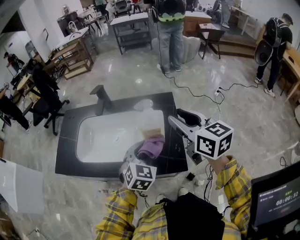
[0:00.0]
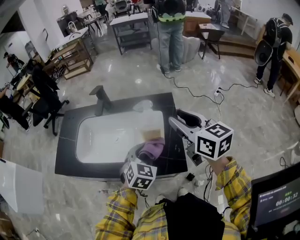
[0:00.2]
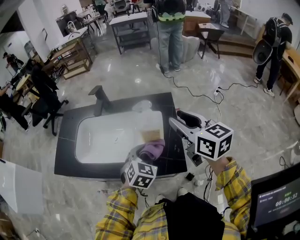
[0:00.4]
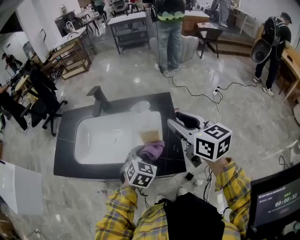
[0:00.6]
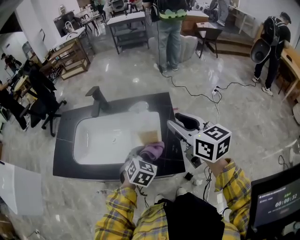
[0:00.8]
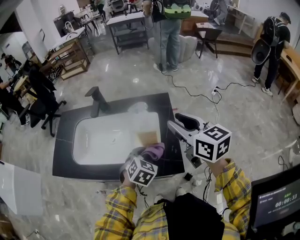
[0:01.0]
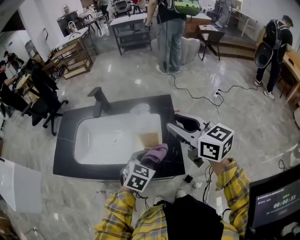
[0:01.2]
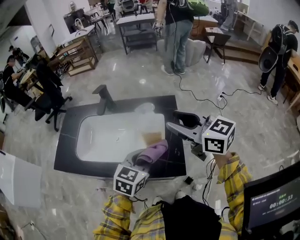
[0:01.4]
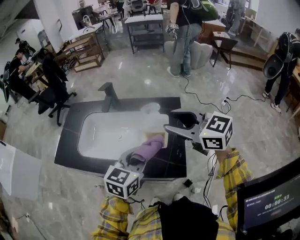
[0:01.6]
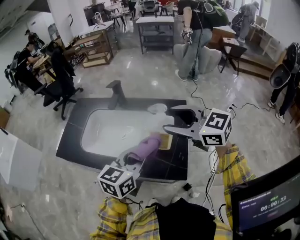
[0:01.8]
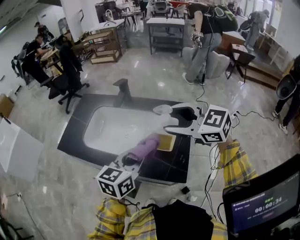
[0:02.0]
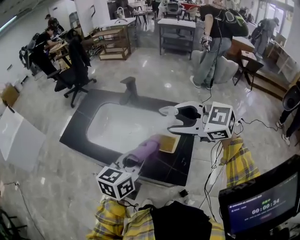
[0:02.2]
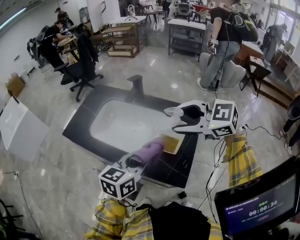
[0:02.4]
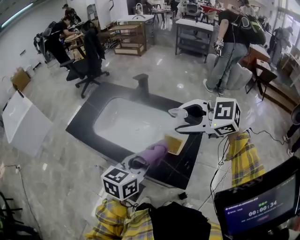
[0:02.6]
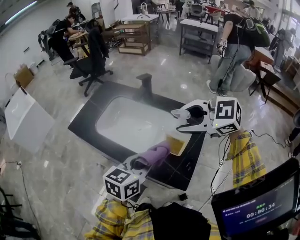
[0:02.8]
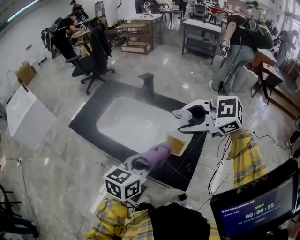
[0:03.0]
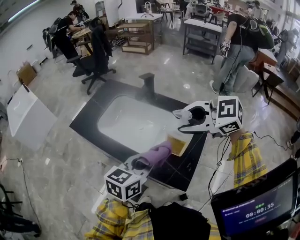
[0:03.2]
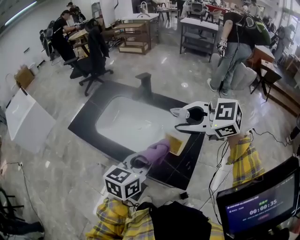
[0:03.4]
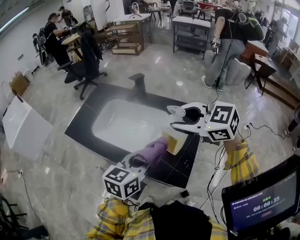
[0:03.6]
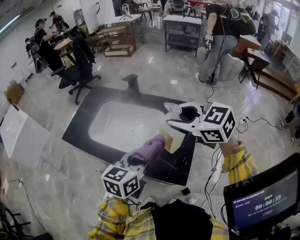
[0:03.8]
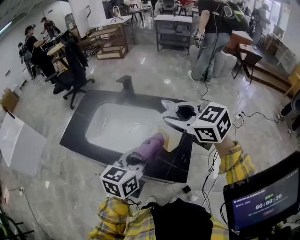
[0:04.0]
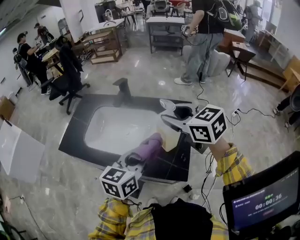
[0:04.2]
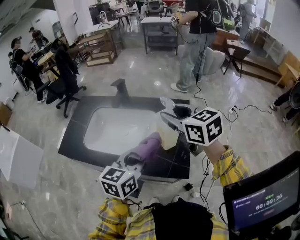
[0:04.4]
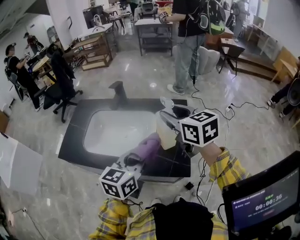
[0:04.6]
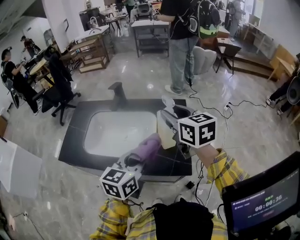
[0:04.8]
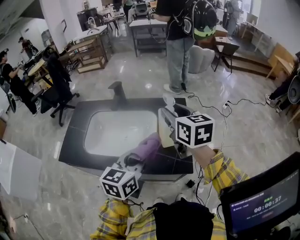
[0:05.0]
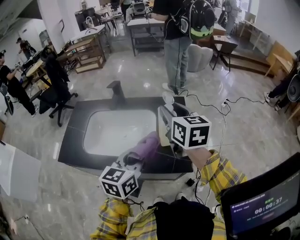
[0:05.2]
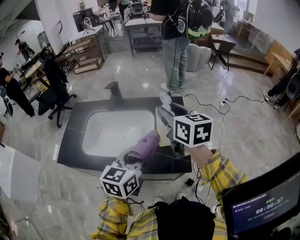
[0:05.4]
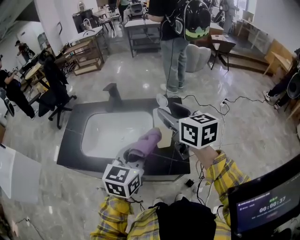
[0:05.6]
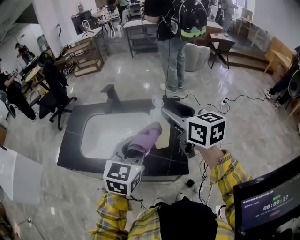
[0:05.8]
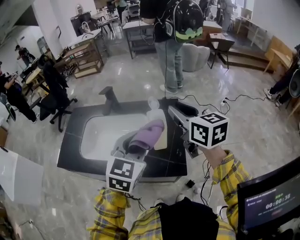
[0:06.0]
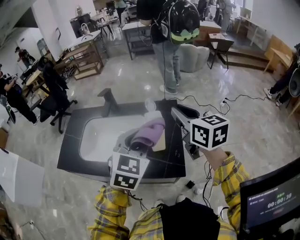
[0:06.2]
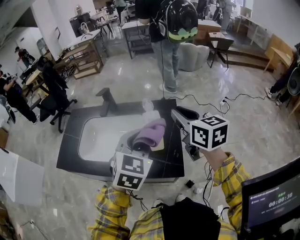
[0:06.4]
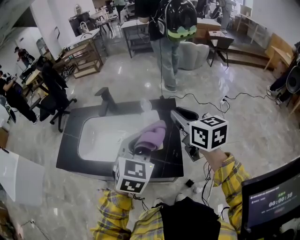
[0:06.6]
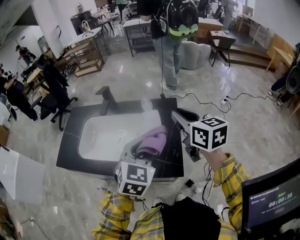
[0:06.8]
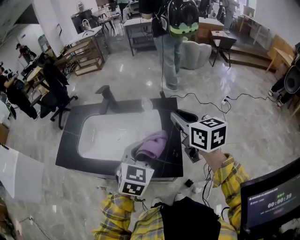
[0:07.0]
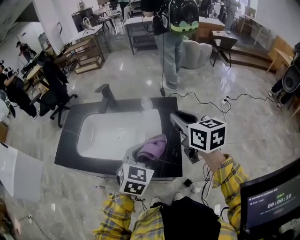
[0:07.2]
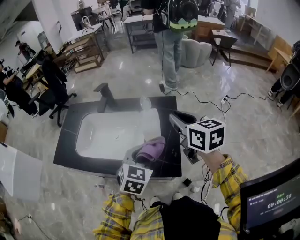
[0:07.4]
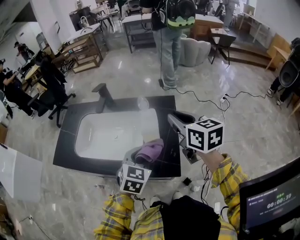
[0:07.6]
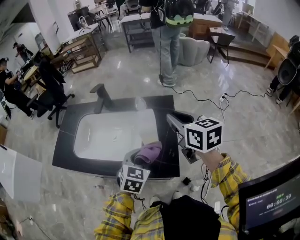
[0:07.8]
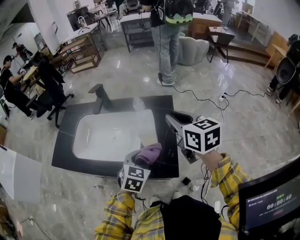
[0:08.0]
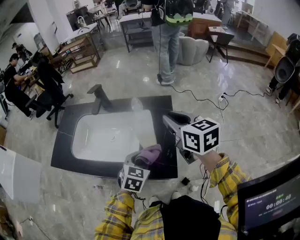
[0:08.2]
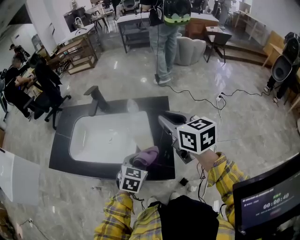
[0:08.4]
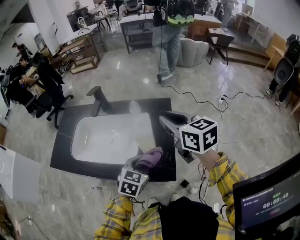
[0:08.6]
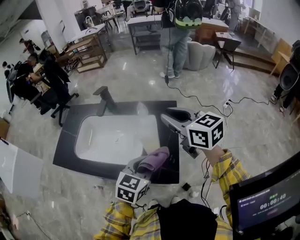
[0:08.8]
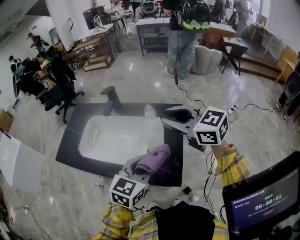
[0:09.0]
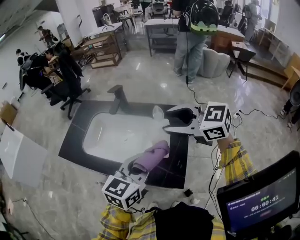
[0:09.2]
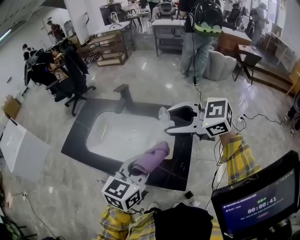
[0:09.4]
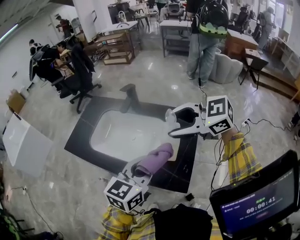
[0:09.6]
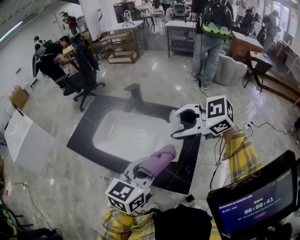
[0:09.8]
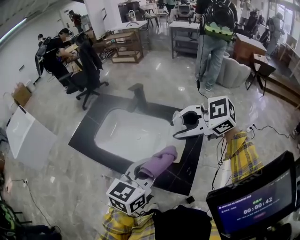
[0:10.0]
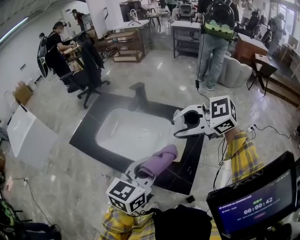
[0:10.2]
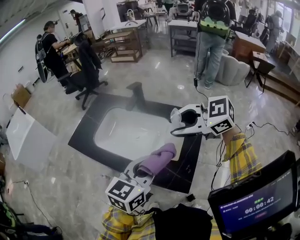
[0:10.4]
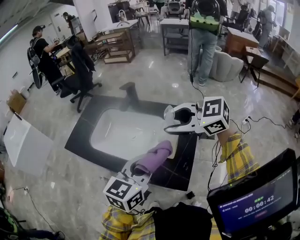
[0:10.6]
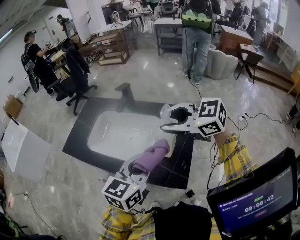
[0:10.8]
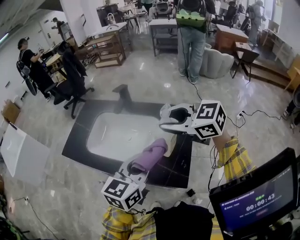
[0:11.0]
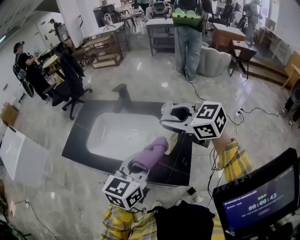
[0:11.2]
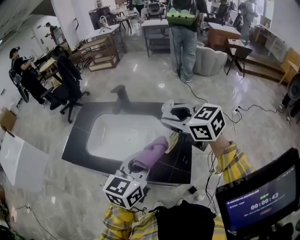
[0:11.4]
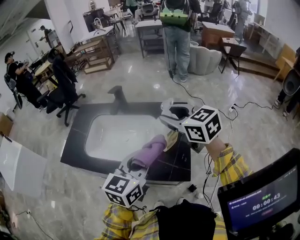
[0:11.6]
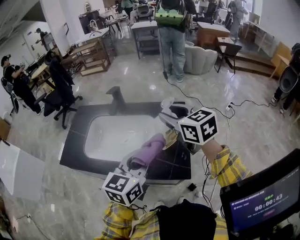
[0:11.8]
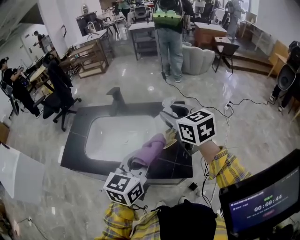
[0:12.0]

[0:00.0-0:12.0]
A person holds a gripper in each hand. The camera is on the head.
0:00.0 to 0:01.6: The left gripper is displaced upward by roughly 5 cm, and changes its angle by roughly 30 degrees. Meanwhile the right gripper changes its angle by about 30 degrees.
0:01.6 to 0:03.0: The right gripper ends up some 5 cm from where it was, and changes its angle by approximately 50 degrees. Meanwhile the left gripper swivels about 20 degrees.
0:03.0 to 0:04.4: The right gripper turns by roughly 60 degrees.
0:04.4 to 0:06.0: The left gripper moves upward, about 5 cm, and rotates approximately 30 degrees, while the right gripper shifts approximately 10 cm to the right, and turns by some 20 degrees.
0:06.0 to 0:07.6: The left gripper shifts approximately 15 cm downward, while the right gripper travels downward by about 5 cm.
0:07.6 to 0:09.0: The left gripper shifts approximately 5 cm upward, while the right gripper shifts some 5 cm to the left, and swivels approximately 40 degrees.
0:09.0 to 0:10.4: The left gripper changes place by some 5 cm; the right gripper changes place by approximately 5 cm, changes its angle by some 40 degrees, and opens up.
0:10.4 to 0:12.0: The right gripper swivels about 70 degrees.

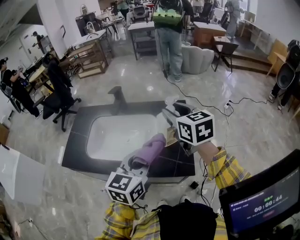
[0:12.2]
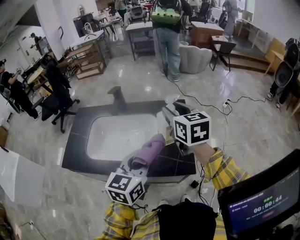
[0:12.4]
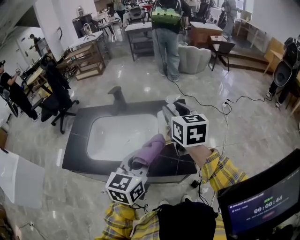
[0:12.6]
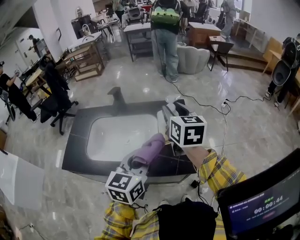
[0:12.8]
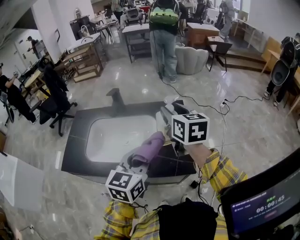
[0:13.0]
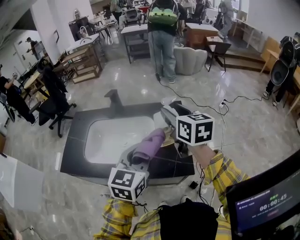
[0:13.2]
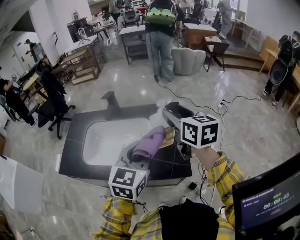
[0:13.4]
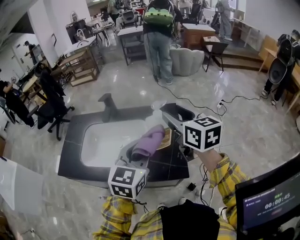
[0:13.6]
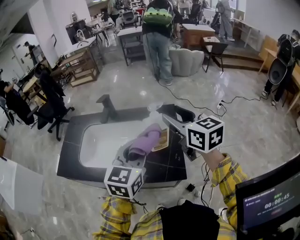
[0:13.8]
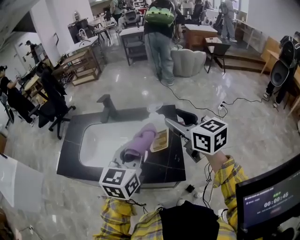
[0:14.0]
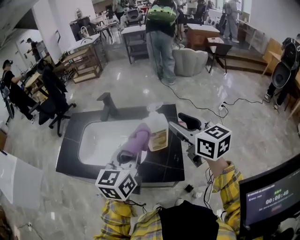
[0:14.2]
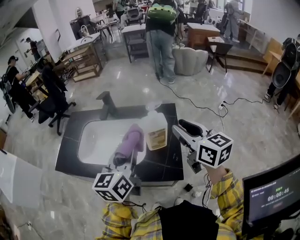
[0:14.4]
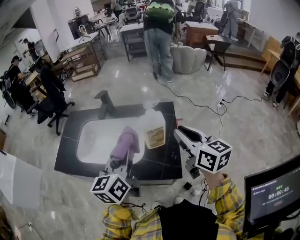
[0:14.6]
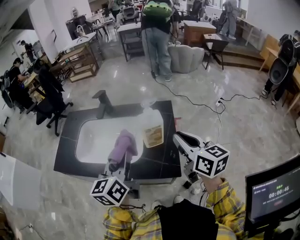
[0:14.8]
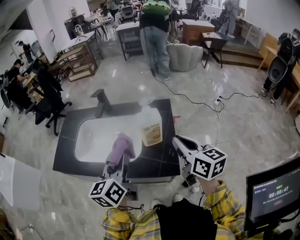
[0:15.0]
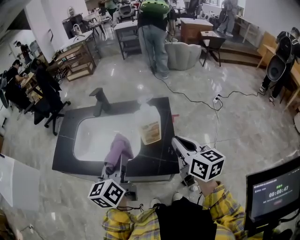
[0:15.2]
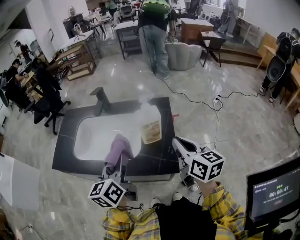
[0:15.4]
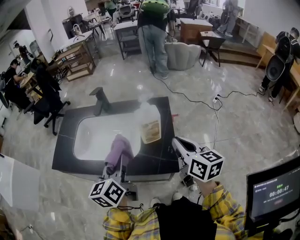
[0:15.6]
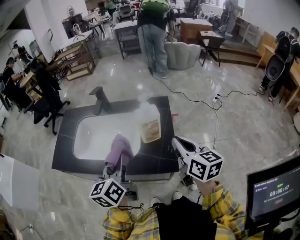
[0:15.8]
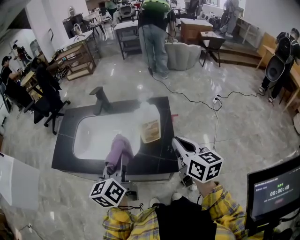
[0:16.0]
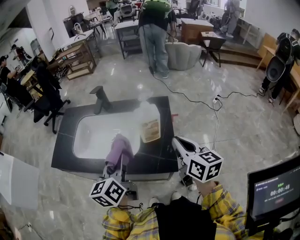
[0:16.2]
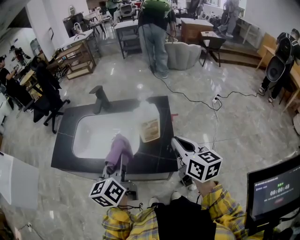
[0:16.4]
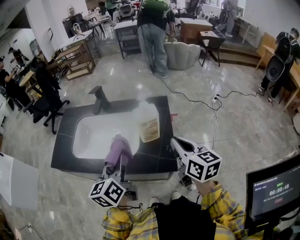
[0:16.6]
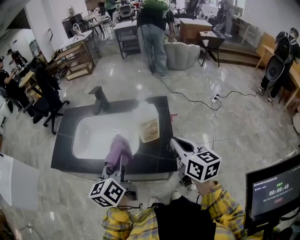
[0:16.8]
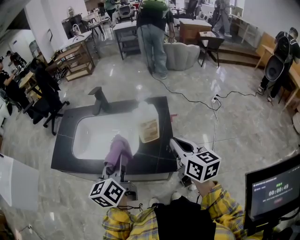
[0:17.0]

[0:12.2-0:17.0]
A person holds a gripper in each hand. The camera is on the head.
0:12.2 to 0:13.8: The left gripper changes place by approximately 5 cm; the right gripper heads to the right, covering roughly 5 cm.
0:13.8 to 0:15.4: The right gripper is displaced backward and downward by roughly 15 cm, and closes its fingers. Meanwhile the left gripper moves to the left and downward, roughly 10 cm, and turns by about 30 degrees.
0:15.4 to 0:17.0: Both grippers stay about where they are.

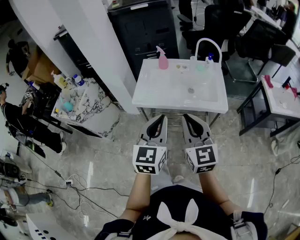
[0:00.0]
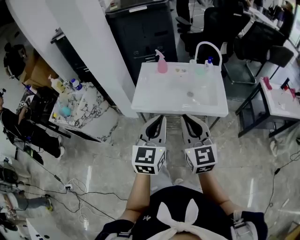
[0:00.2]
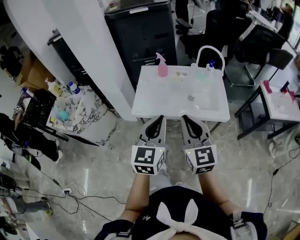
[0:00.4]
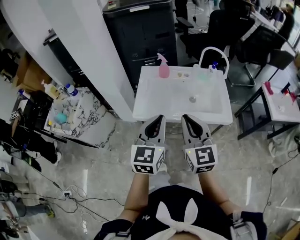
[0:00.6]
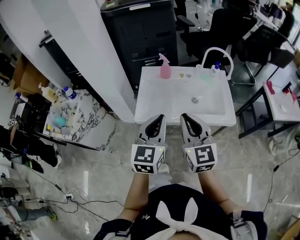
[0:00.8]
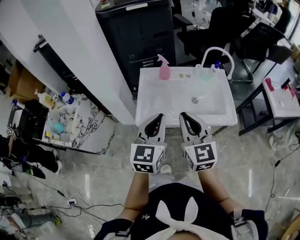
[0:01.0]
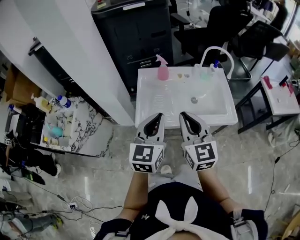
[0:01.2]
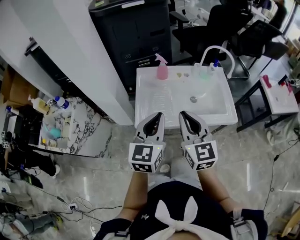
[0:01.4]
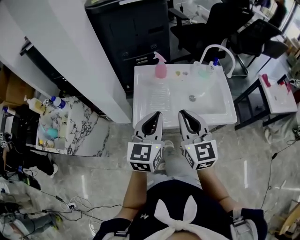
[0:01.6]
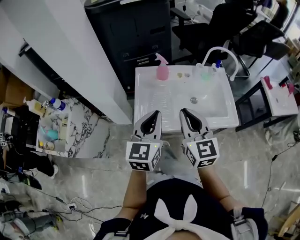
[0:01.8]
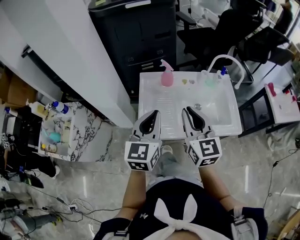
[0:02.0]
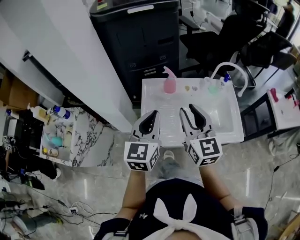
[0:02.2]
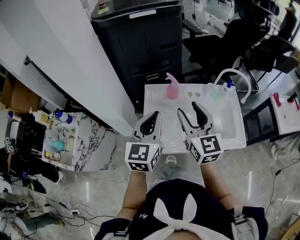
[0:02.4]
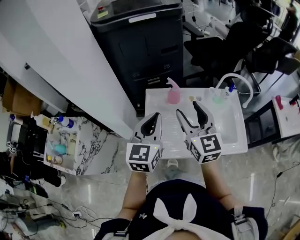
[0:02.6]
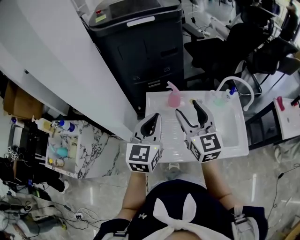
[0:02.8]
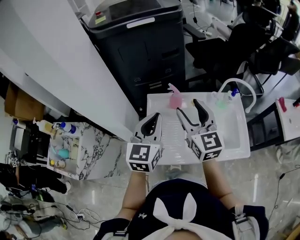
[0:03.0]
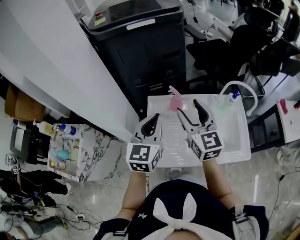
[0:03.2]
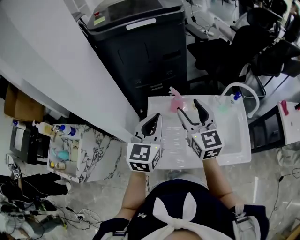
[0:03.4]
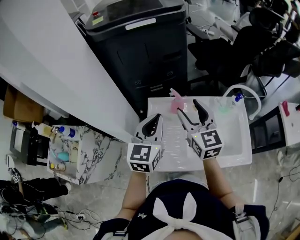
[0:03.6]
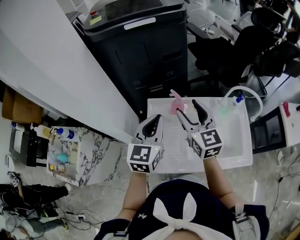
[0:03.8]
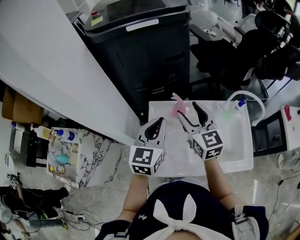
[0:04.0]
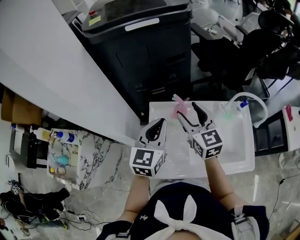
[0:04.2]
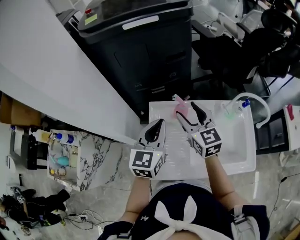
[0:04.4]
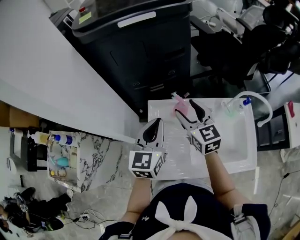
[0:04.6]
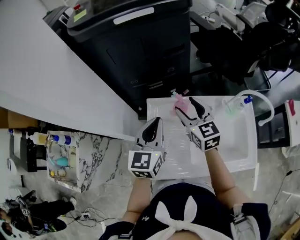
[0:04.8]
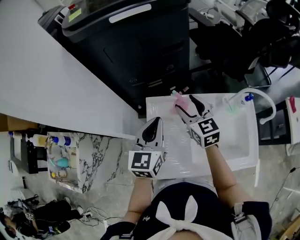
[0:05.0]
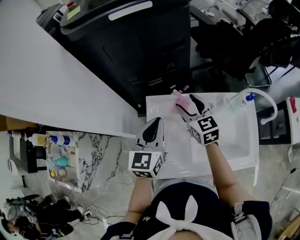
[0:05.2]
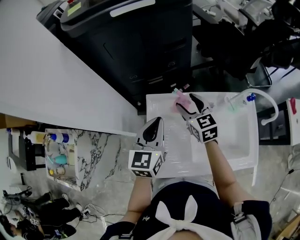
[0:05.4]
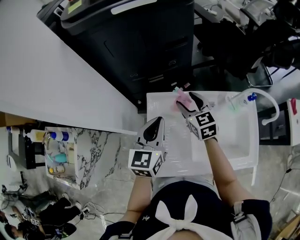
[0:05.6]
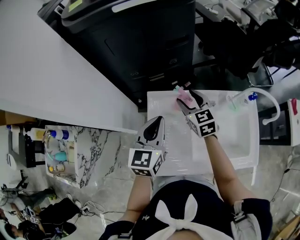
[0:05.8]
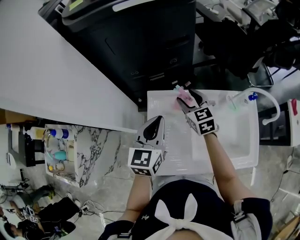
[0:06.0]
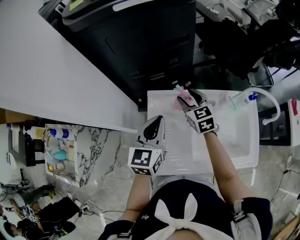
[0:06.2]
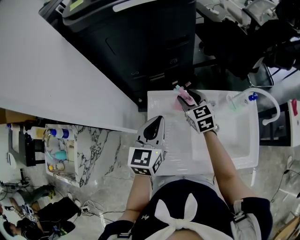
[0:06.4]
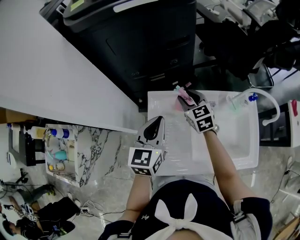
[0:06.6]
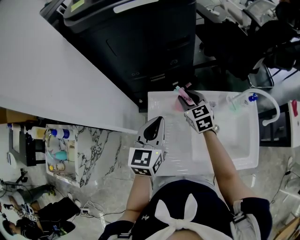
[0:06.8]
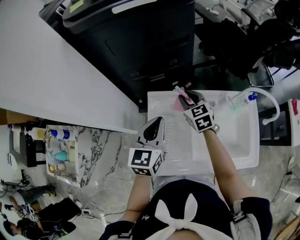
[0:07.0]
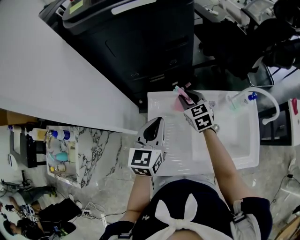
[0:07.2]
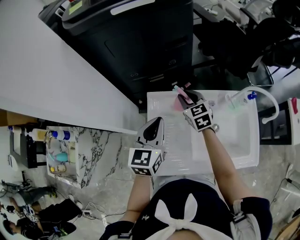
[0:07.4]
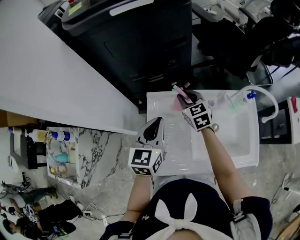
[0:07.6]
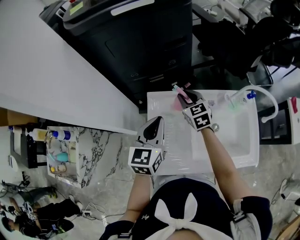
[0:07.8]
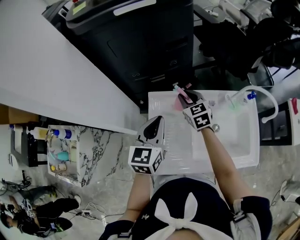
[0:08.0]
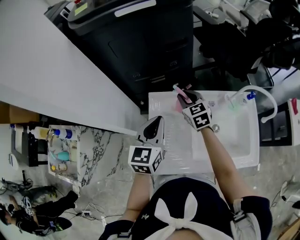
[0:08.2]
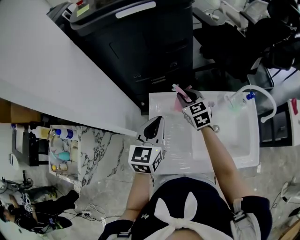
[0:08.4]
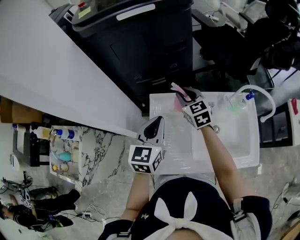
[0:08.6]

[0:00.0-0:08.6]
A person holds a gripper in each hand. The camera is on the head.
0:00.0 to 0:01.4: The grippers both shift forward and to the left by some 20 cm.
0:01.4 to 0:02.8: Both grippers travel together forward, some 20 cm. The right gripper opens.
0:02.8 to 0:04.4: Both grippers travel together forward and downward, approximately 15 cm.
0:04.4 to 0:05.8: The right gripper is displaced downward and forward by some 15 cm. Meanwhile the left gripper goes about 5 cm downward.
0:05.8 to 0:07.2: The right gripper closes its fingers.
0:07.2 to 0:08.6: The grippers stay close to where they were, moving slightly.
